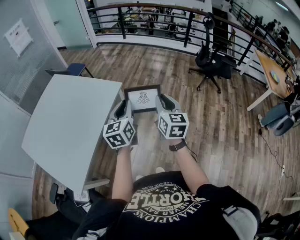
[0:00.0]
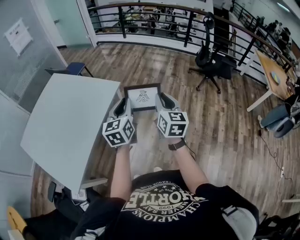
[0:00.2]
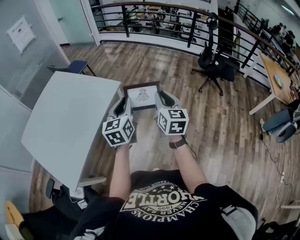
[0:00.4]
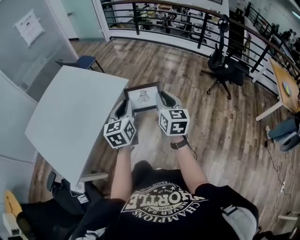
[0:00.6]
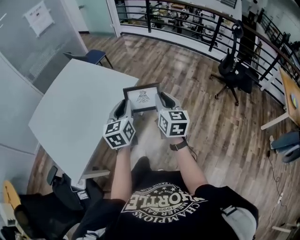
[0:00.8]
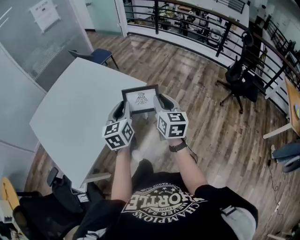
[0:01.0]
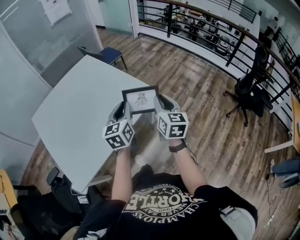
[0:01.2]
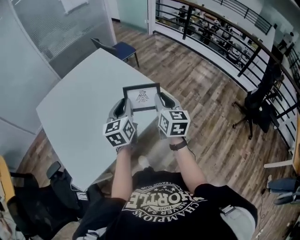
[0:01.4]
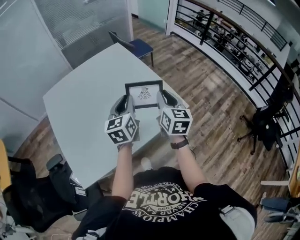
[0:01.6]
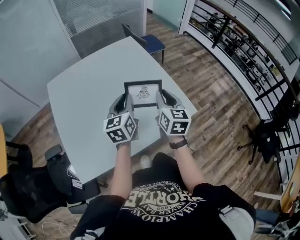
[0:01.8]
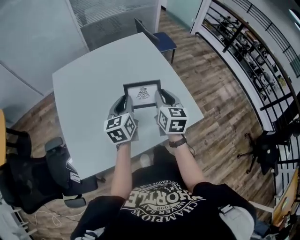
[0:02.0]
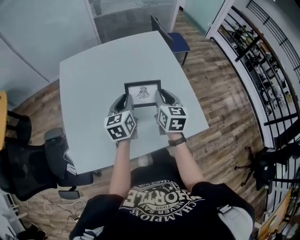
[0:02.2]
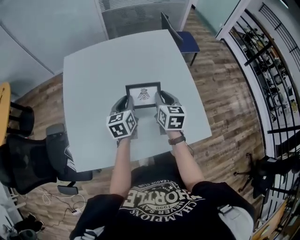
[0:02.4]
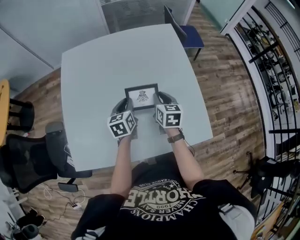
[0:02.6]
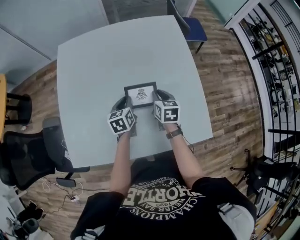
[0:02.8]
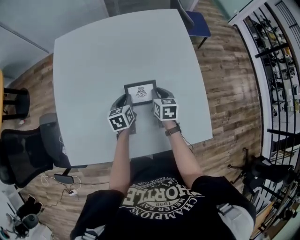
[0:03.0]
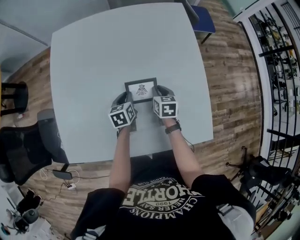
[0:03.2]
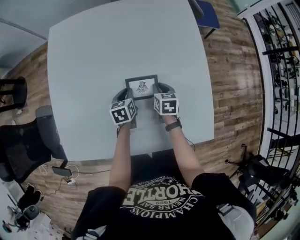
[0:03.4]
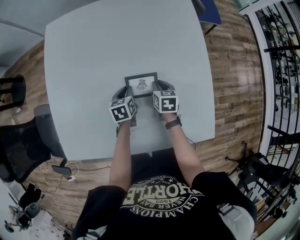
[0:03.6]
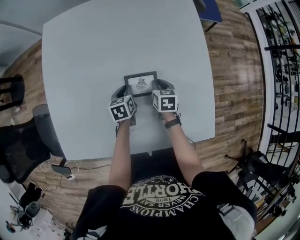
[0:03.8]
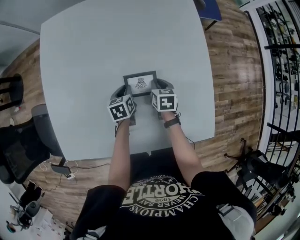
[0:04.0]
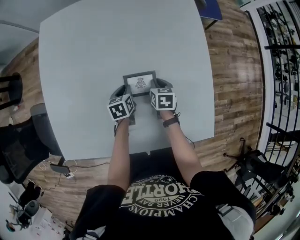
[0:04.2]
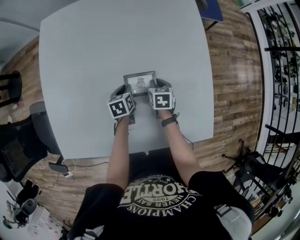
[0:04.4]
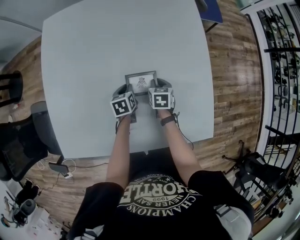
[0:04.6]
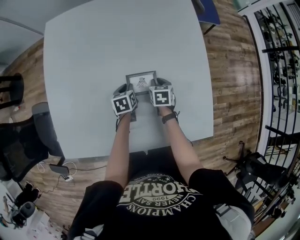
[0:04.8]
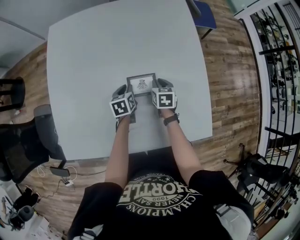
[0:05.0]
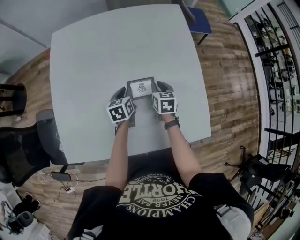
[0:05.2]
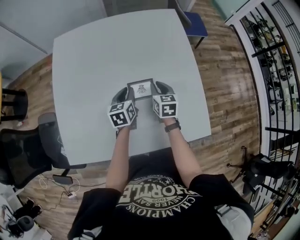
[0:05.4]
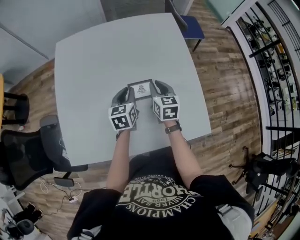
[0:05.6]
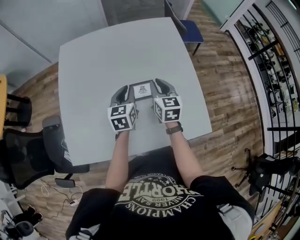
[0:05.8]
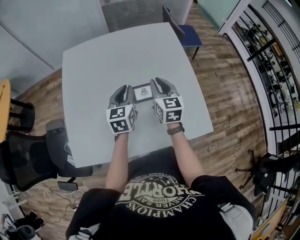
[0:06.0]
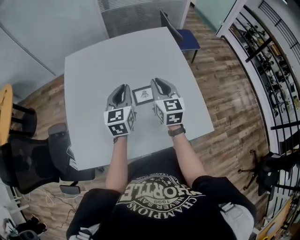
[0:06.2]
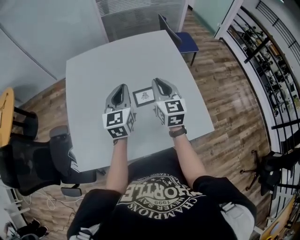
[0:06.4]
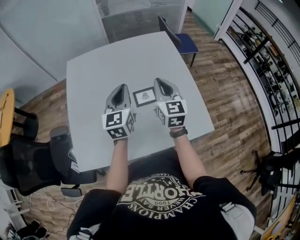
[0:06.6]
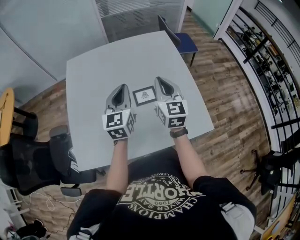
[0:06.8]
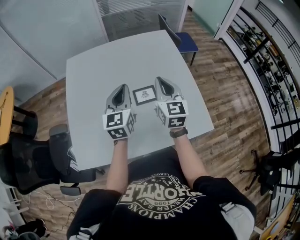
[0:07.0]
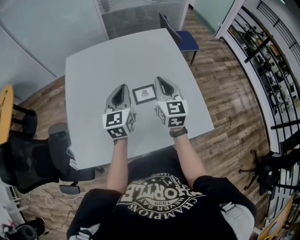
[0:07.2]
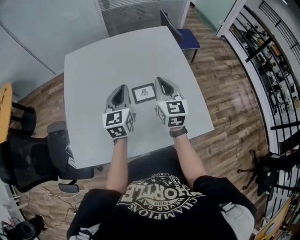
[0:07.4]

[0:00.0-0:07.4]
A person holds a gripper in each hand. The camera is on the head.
0:00.0 to 0:01.4: The right gripper ends up about 40 cm from where it was, and swivels about 30 degrees. The left gripper ends up some 40 cm from where it was, and rotates about 30 degrees.
0:01.4 to 0:03.0: The right gripper shifts by roughly 50 cm, and rotates roughly 50 degrees. The left gripper ends up roughly 40 cm from where it was, and swivels some 40 degrees.
0:03.0 to 0:04.4: Both grippers move downward, approximately 15 cm.
0:04.4 to 0:06.0: Both grippers travel together upward, about 30 cm. The right gripper points its fingers roughly 40 degrees further upward; the left gripper tips its fingers upward by about 30 degrees.
0:06.0 to 0:07.4: Both grippers move upward, some 5 cm.

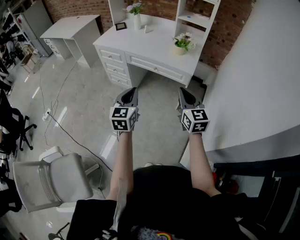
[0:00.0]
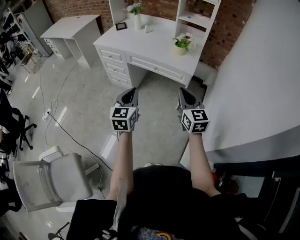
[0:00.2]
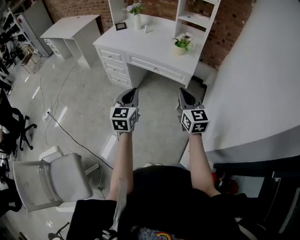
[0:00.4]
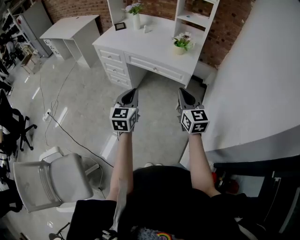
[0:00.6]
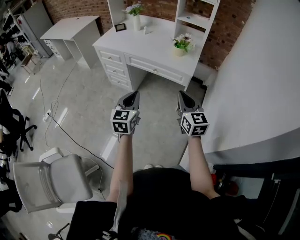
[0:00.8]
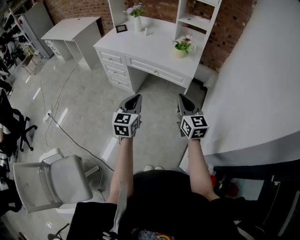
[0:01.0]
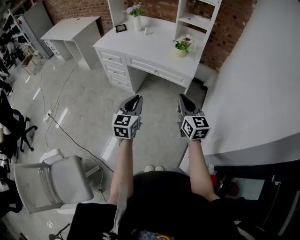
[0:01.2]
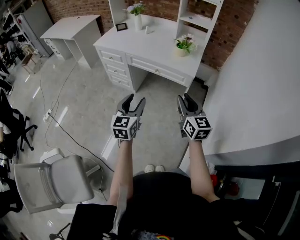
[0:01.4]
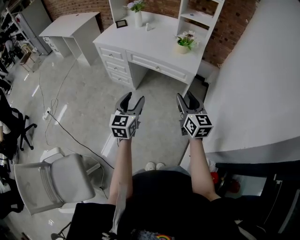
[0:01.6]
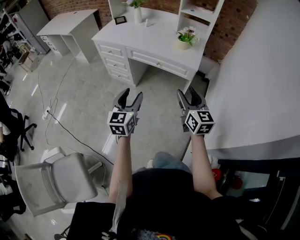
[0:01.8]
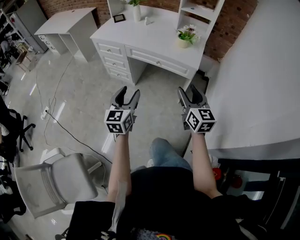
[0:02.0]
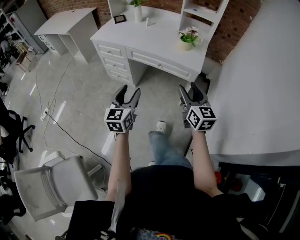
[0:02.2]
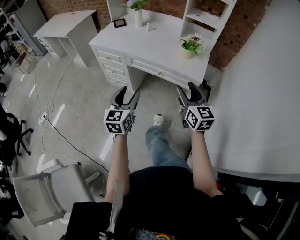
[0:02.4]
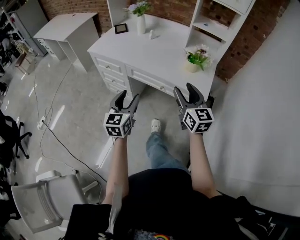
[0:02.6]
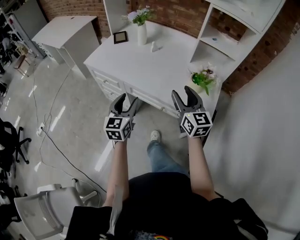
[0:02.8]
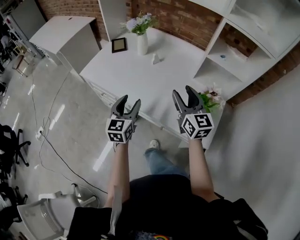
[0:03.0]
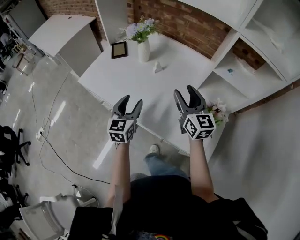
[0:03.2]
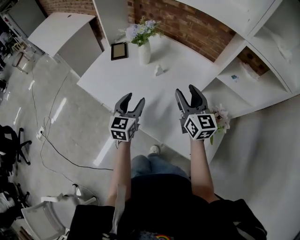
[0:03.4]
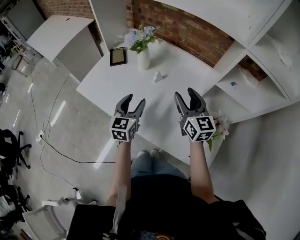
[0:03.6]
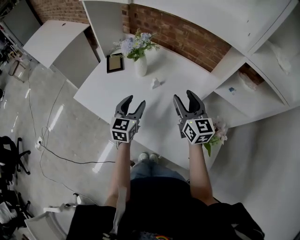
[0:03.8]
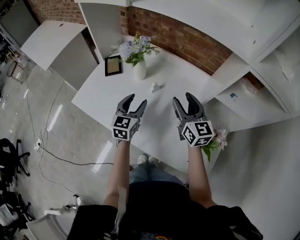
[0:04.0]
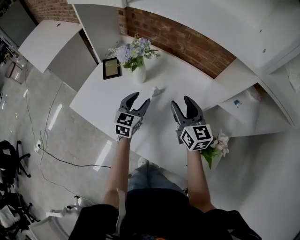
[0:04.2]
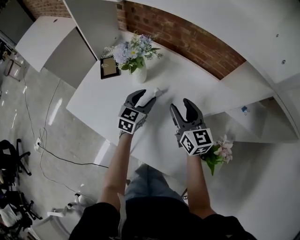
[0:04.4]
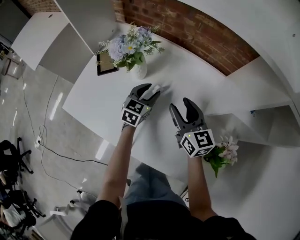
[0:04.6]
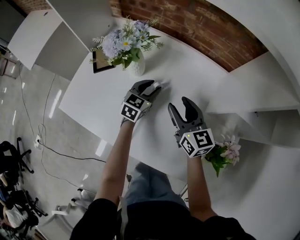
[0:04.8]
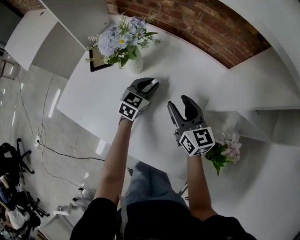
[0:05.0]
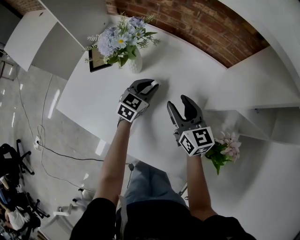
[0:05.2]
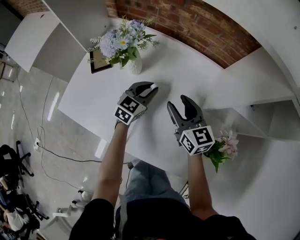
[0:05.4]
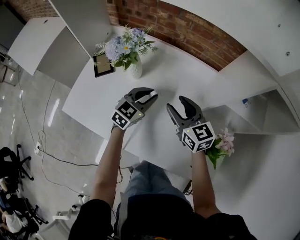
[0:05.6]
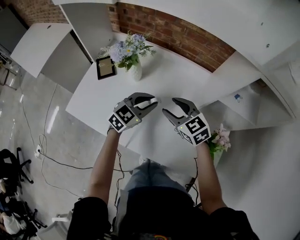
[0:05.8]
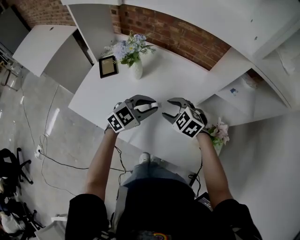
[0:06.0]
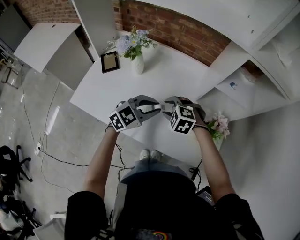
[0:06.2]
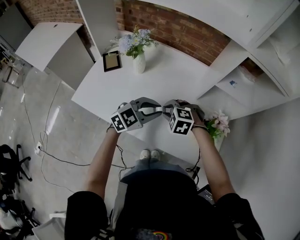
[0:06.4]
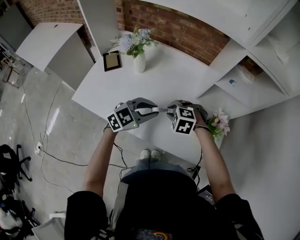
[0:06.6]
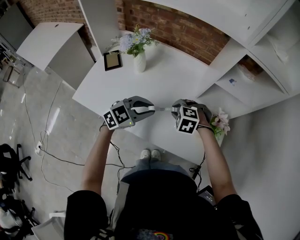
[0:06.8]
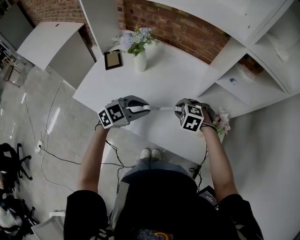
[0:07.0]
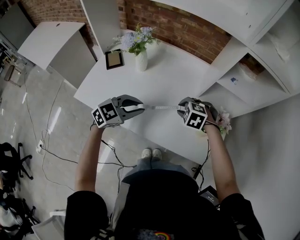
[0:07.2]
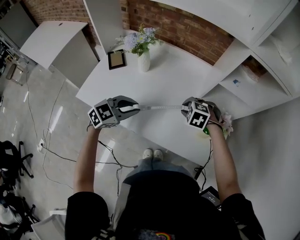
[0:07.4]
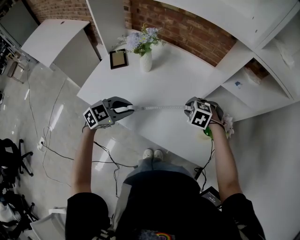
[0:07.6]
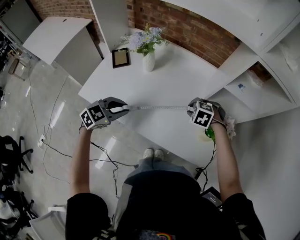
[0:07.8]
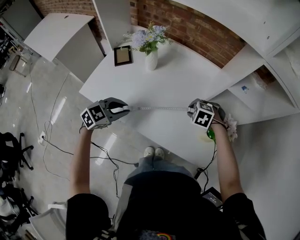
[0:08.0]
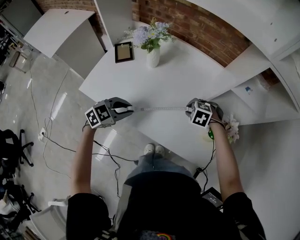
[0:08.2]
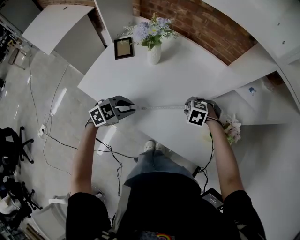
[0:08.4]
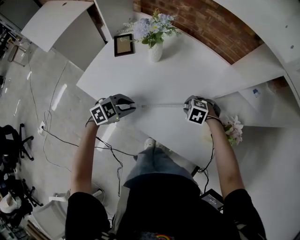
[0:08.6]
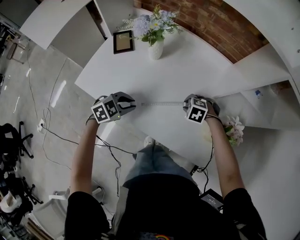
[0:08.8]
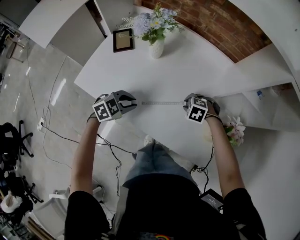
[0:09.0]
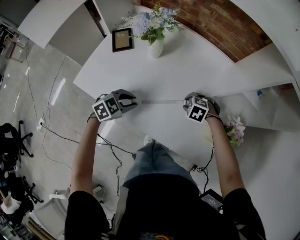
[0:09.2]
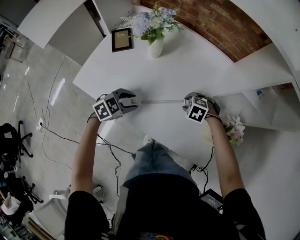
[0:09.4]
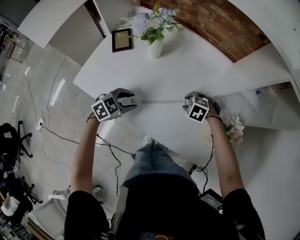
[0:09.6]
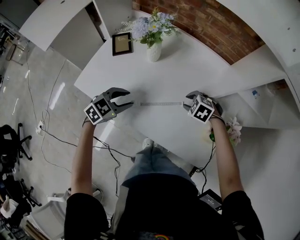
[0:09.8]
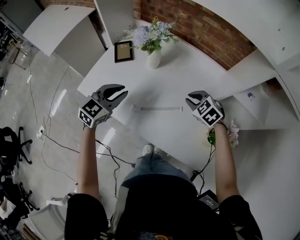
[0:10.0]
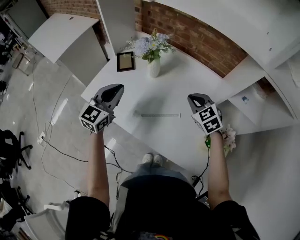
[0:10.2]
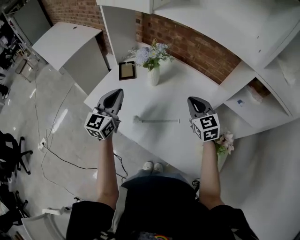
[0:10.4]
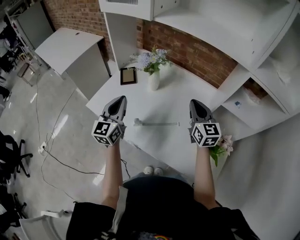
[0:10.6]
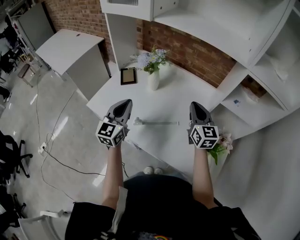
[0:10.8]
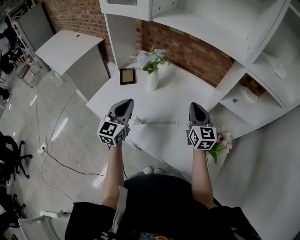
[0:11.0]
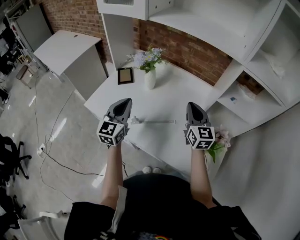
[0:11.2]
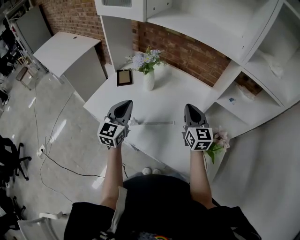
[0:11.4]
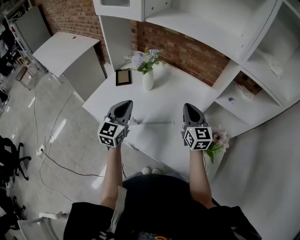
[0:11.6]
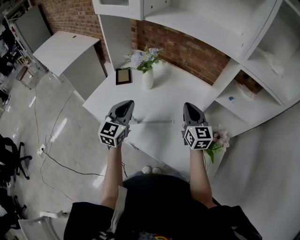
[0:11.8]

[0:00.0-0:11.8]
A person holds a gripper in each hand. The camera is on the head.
0:00.0 to 0:01.4: The right gripper opens up. The left gripper opens its fingers.
0:01.4 to 0:03.0: Both grippers are carried forward, approximately 50 cm. The right gripper opens up.
0:03.0 to 0:04.4: Both grippers move forward, about 25 cm. The left gripper swivels about 20 degrees.
0:04.4 to 0:06.0: The right gripper shifts about 10 cm backward and downward, and angles its fingers downward, by about 40 degrees, while the left gripper shifts roughly 15 cm backward, upward and to the right, changes its angle by roughly 40 degrees, and closes its fingers.
0:06.0 to 0:07.4: The right gripper moves to the right, roughly 5 cm, rotates roughly 20 degrees, and closes; the left gripper moves backward and to the left, approximately 15 cm.
0:07.4 to 0:08.8: The grippers both shift downward by roughly 10 cm.
0:08.8 to 0:10.4: Both grippers travel together upward, about 25 cm. The right gripper tips its fingers upward by roughly 60 degrees, and closes up. Meanwhile the left gripper points its fingers about 50 degrees further upward, and opens, then closes once more.
0:10.4 to 0:11.8: The right gripper moves about 5 cm, and turns by roughly 20 degrees; the left gripper is displaced to the right by about 10 cm.

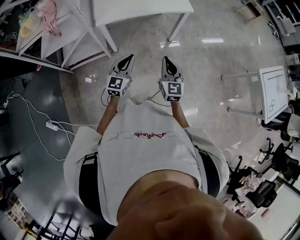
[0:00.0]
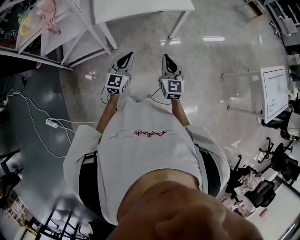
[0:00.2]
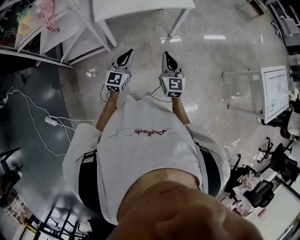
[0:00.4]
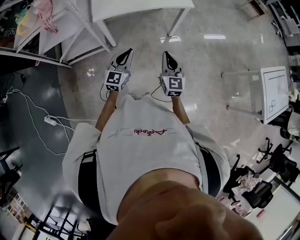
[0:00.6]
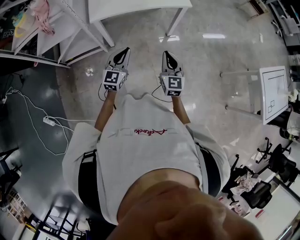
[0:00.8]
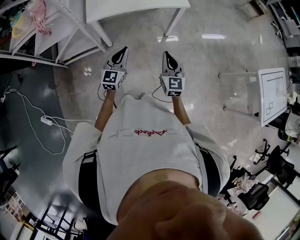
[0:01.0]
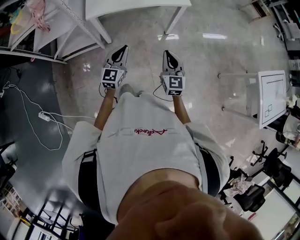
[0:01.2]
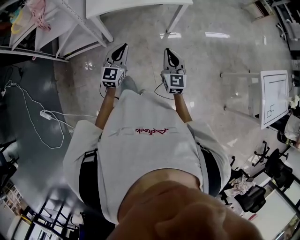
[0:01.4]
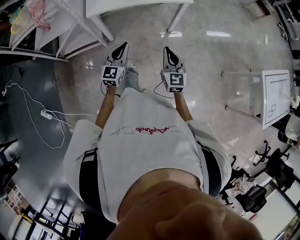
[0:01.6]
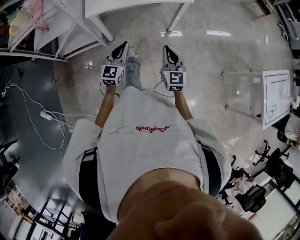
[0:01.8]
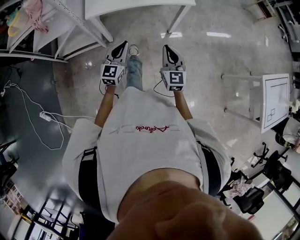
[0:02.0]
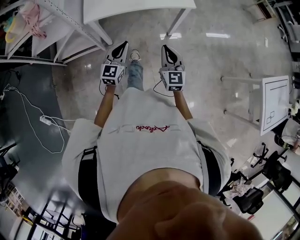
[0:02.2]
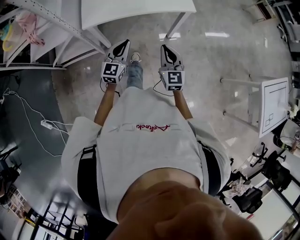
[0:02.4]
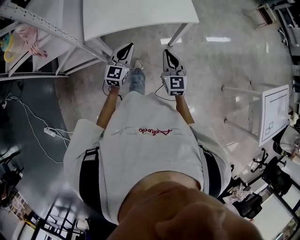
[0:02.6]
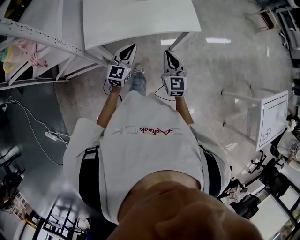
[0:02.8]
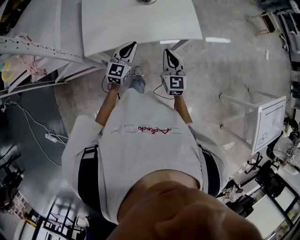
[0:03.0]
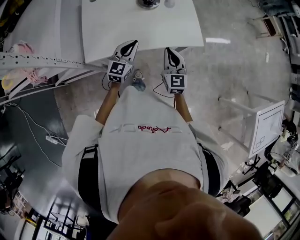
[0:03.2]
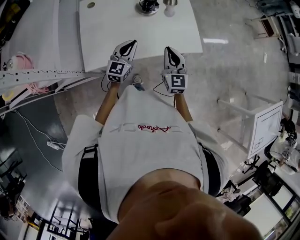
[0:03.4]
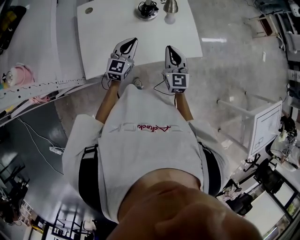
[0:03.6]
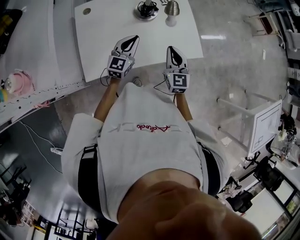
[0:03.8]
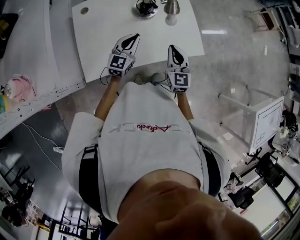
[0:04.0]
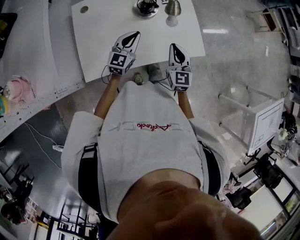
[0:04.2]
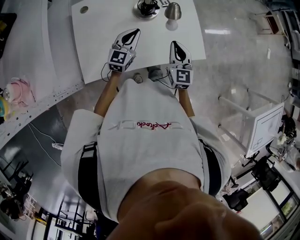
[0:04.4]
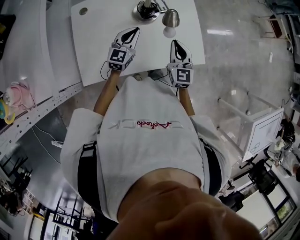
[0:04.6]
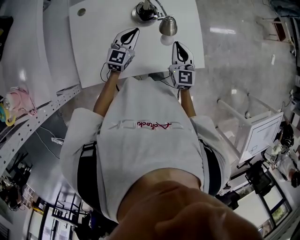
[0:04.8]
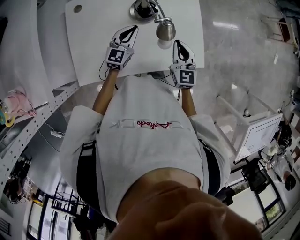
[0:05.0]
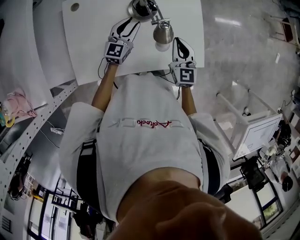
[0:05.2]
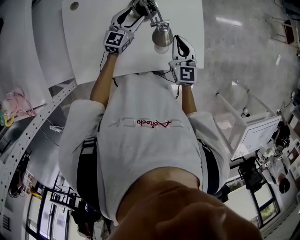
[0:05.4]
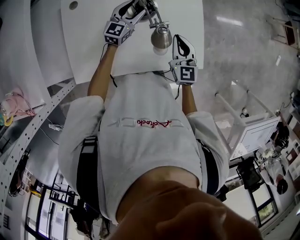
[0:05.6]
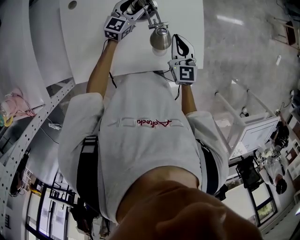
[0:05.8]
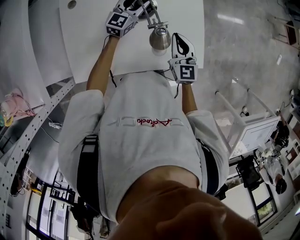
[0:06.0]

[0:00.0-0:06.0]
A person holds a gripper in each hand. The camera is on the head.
0:00.0 to 0:01.6: The left gripper ends up roughly 5 cm from where it was. Meanwhile the right gripper heads to the right, covering about 5 cm.
0:01.6 to 0:03.0: The two grippers go some 30 cm forward.
0:03.0 to 0:04.4: Both grippers travel together forward, approximately 20 cm.
0:04.4 to 0:06.0: The left gripper moves forward, approximately 20 cm, and opens up; the right gripper moves forward, about 10 cm.
